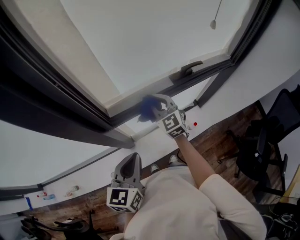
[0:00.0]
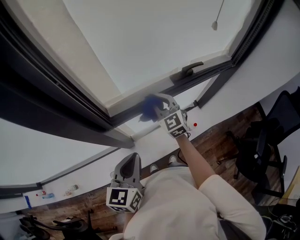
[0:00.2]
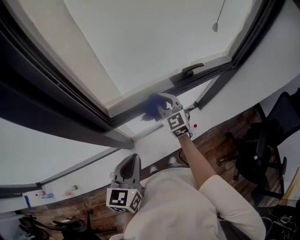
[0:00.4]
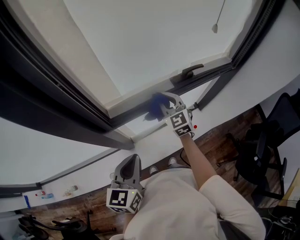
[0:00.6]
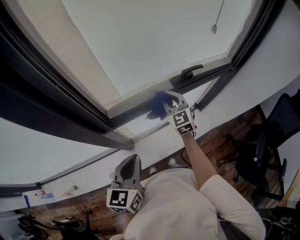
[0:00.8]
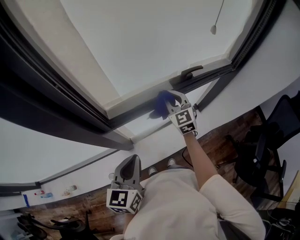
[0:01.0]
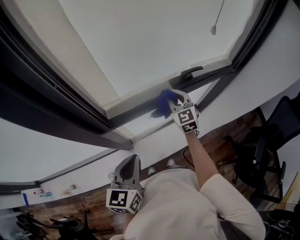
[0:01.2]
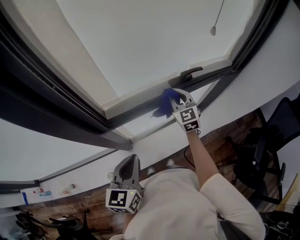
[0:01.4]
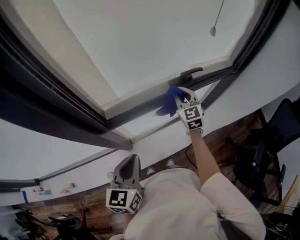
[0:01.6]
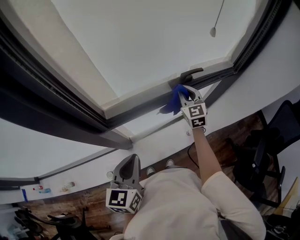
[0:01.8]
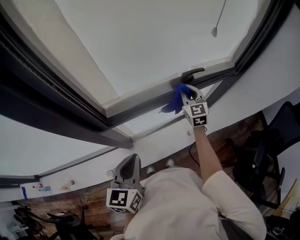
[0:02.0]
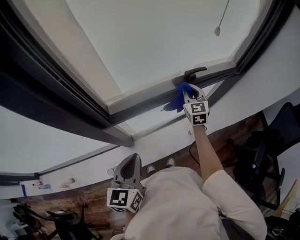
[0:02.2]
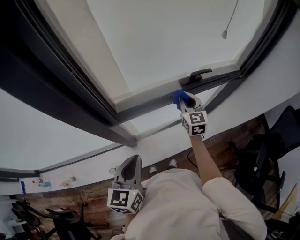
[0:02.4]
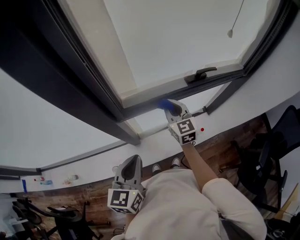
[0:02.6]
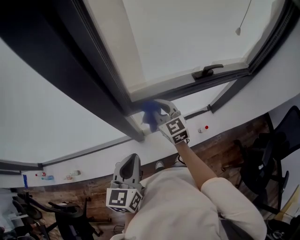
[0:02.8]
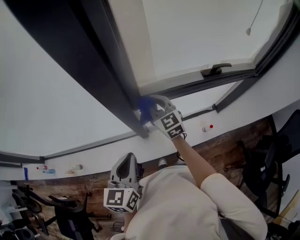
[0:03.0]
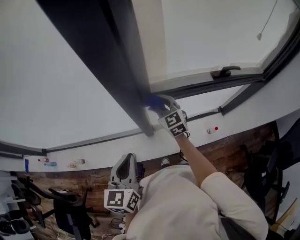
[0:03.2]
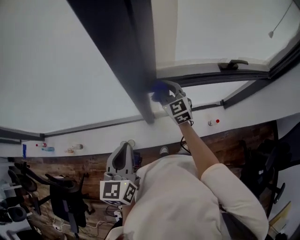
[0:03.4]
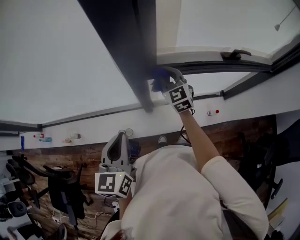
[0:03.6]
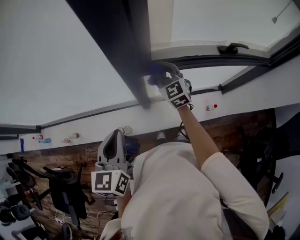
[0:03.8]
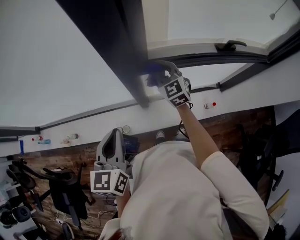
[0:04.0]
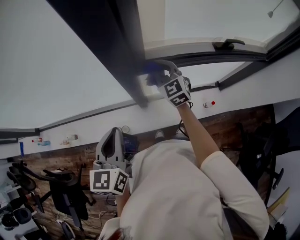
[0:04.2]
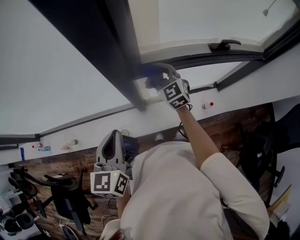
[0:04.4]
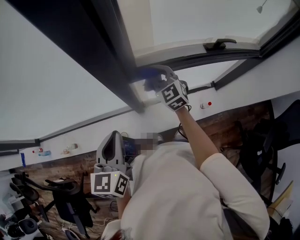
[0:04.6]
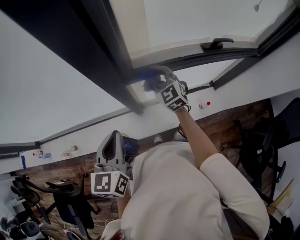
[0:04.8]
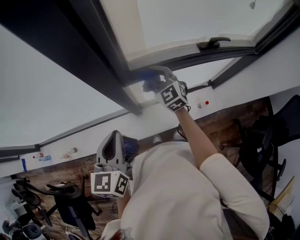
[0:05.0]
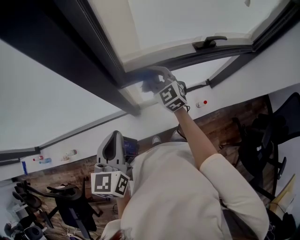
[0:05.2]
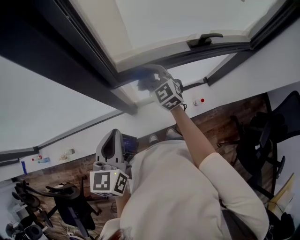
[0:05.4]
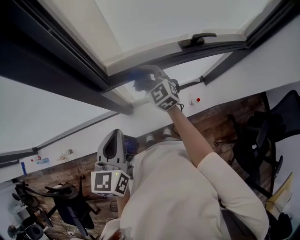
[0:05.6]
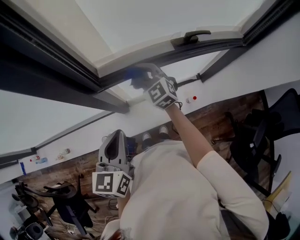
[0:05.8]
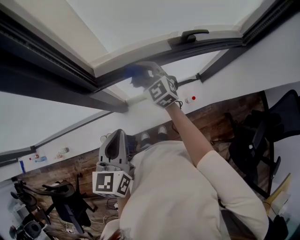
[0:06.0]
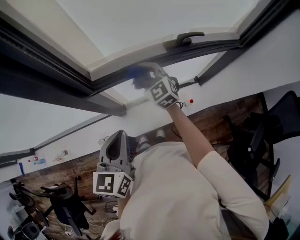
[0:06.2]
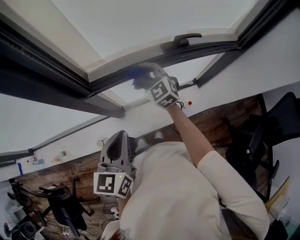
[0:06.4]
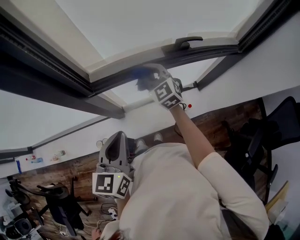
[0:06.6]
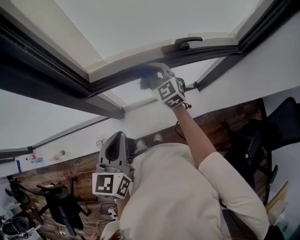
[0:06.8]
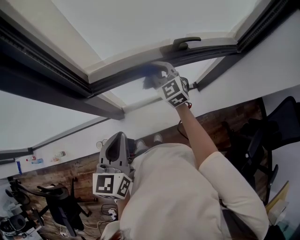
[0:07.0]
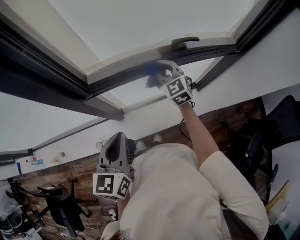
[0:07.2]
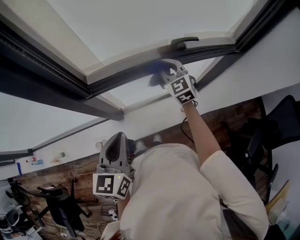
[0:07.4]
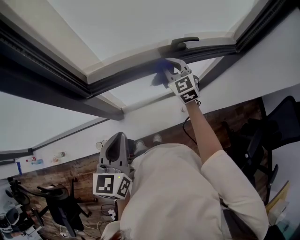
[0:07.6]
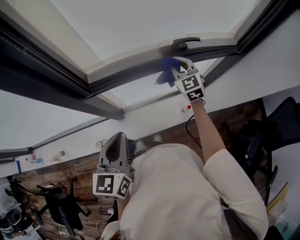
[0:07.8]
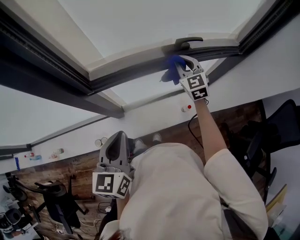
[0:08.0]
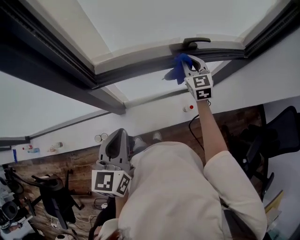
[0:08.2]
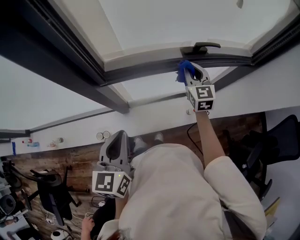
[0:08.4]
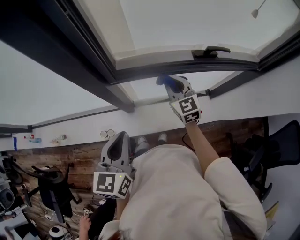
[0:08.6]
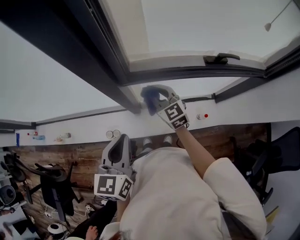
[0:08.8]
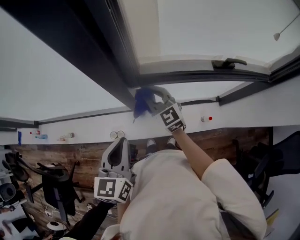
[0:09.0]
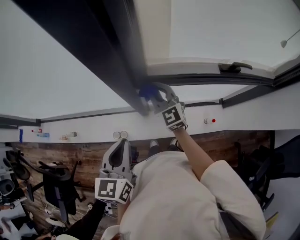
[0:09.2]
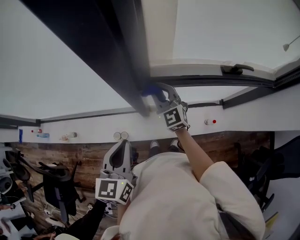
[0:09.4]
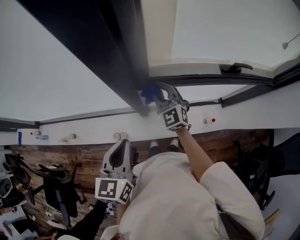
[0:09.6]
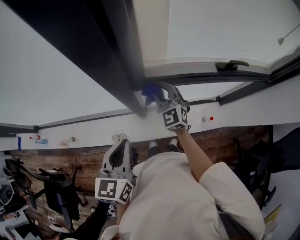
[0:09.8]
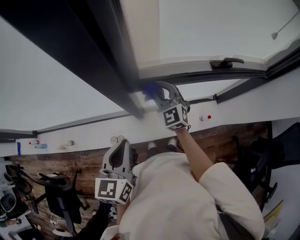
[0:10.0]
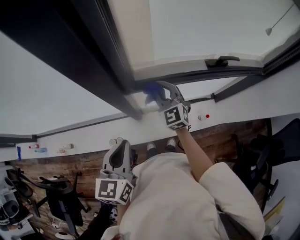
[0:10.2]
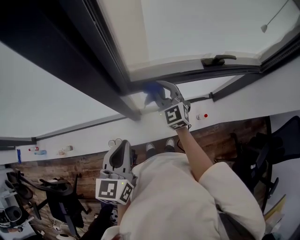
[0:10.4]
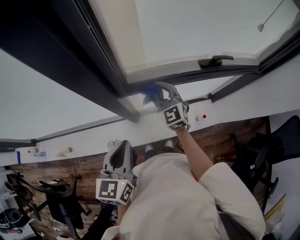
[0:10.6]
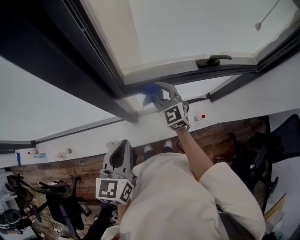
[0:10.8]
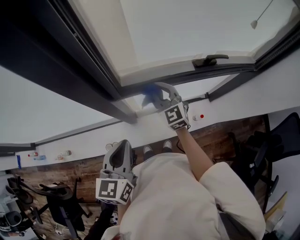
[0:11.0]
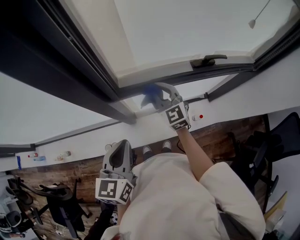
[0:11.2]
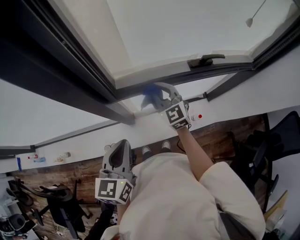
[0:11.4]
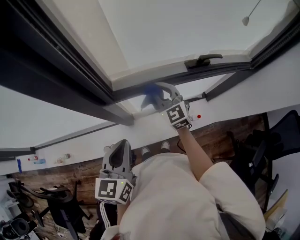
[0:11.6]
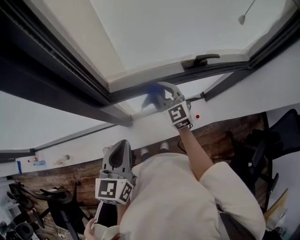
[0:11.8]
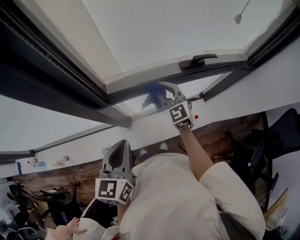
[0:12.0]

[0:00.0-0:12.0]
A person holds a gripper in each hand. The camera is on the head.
0:00.0 to 0:01.6: The right gripper is displaced to the right by some 15 cm.
0:01.6 to 0:03.0: The left gripper goes approximately 15 cm to the left and backward, while the right gripper moves to the left, approximately 30 cm, and swivels some 30 degrees.
0:04.4 to 0:06.0: Both grippers move to the right, approximately 15 cm.
0:06.0 to 0:07.6: The right gripper moves to the right, roughly 15 cm.
0:07.6 to 0:09.0: The right gripper travels to the left by about 30 cm, and rotates about 30 degrees. The left gripper heads to the left, covering some 15 cm.
0:09.0 to 0:10.4: The right gripper goes roughly 10 cm to the right, and turns by approximately 20 degrees.
0:10.4 to 0:12.0: The two grippers go approximately 10 cm to the right.

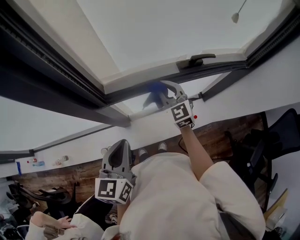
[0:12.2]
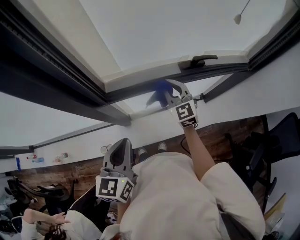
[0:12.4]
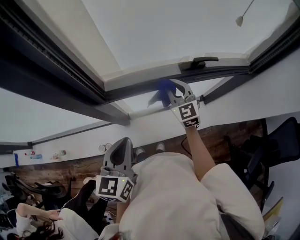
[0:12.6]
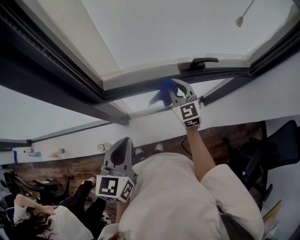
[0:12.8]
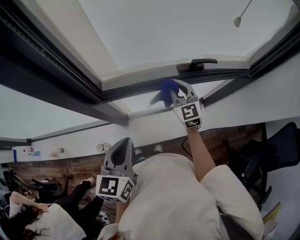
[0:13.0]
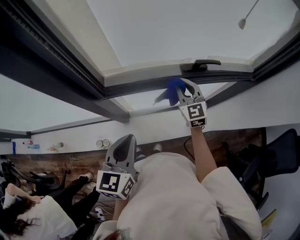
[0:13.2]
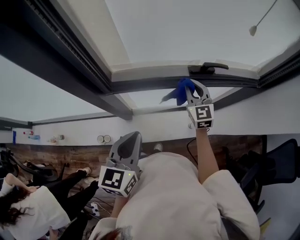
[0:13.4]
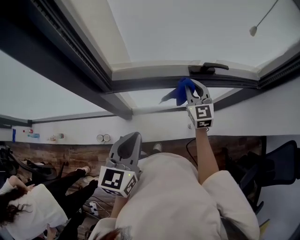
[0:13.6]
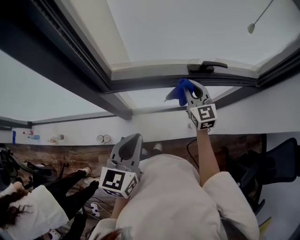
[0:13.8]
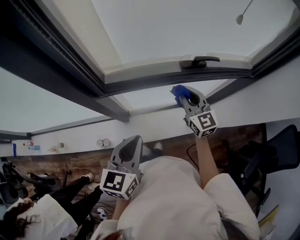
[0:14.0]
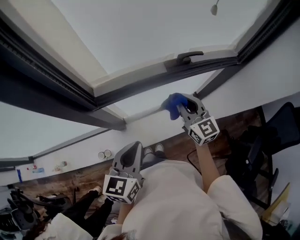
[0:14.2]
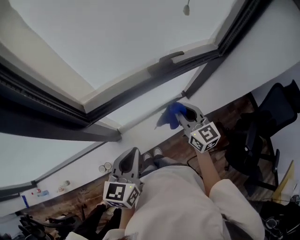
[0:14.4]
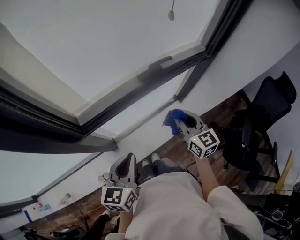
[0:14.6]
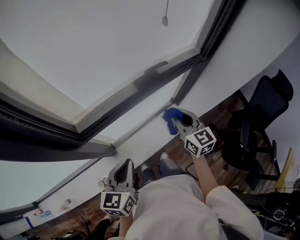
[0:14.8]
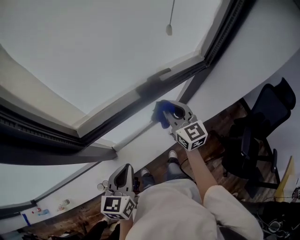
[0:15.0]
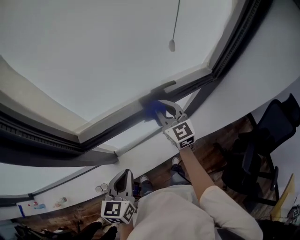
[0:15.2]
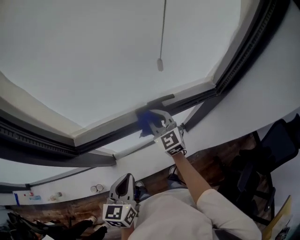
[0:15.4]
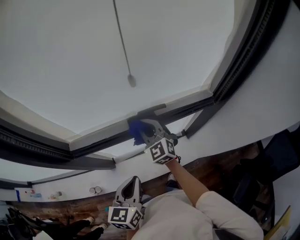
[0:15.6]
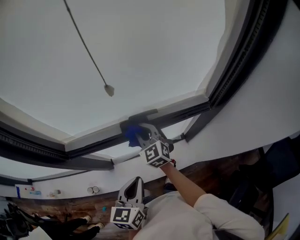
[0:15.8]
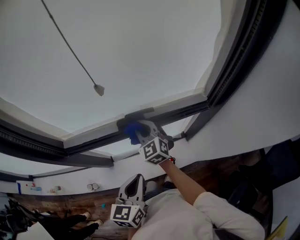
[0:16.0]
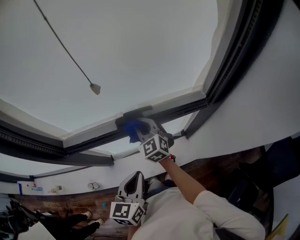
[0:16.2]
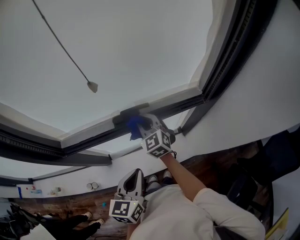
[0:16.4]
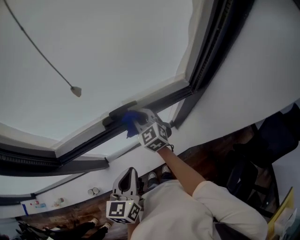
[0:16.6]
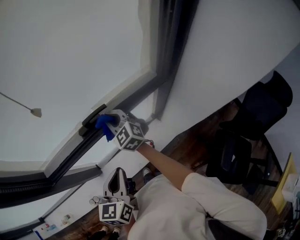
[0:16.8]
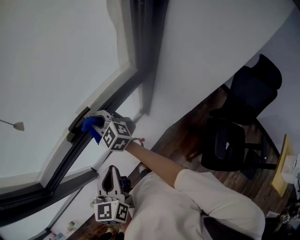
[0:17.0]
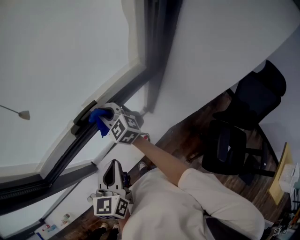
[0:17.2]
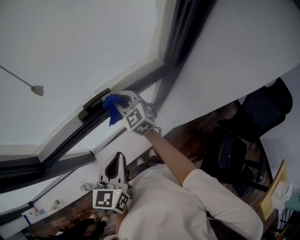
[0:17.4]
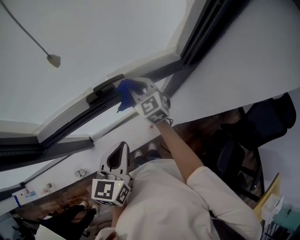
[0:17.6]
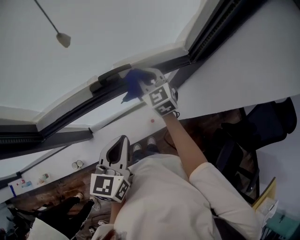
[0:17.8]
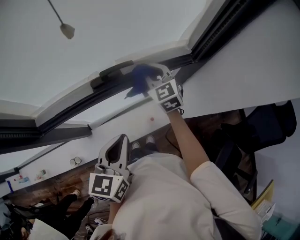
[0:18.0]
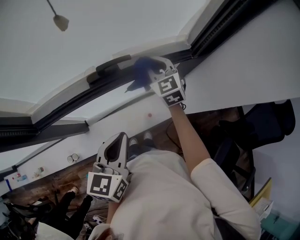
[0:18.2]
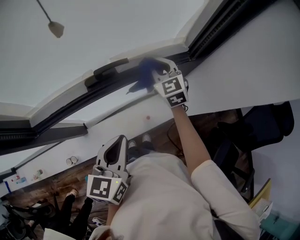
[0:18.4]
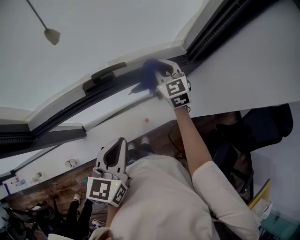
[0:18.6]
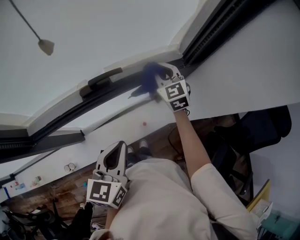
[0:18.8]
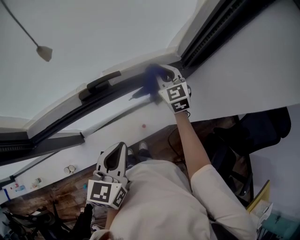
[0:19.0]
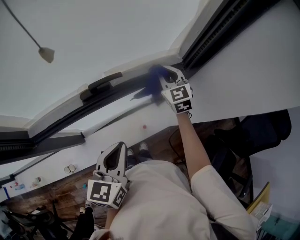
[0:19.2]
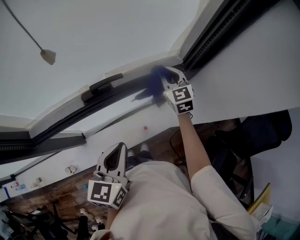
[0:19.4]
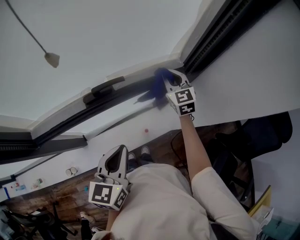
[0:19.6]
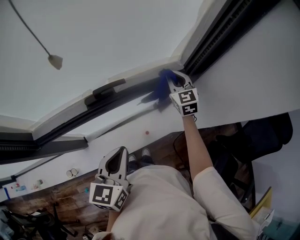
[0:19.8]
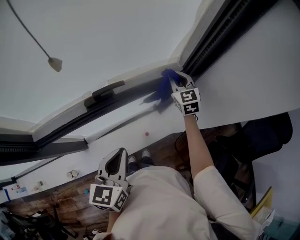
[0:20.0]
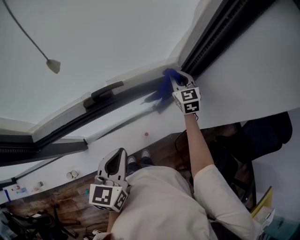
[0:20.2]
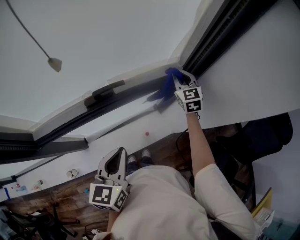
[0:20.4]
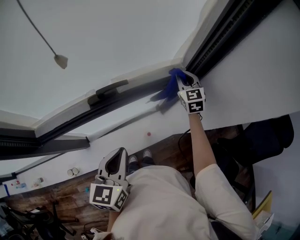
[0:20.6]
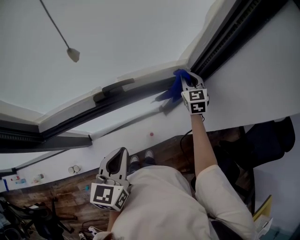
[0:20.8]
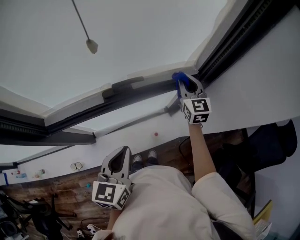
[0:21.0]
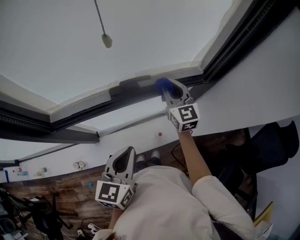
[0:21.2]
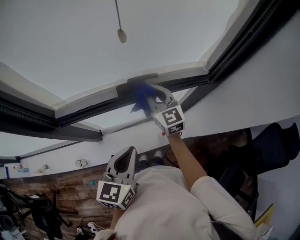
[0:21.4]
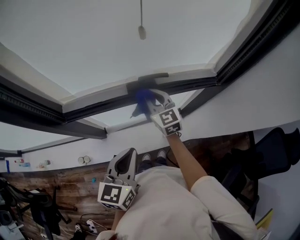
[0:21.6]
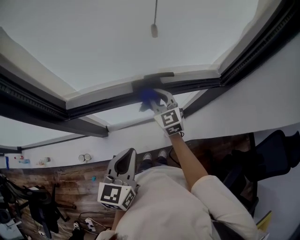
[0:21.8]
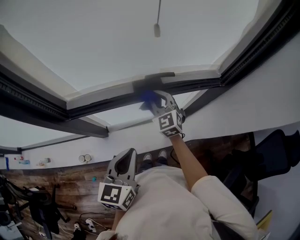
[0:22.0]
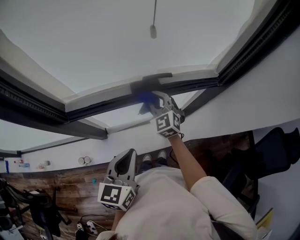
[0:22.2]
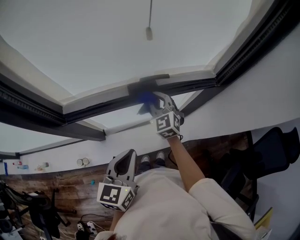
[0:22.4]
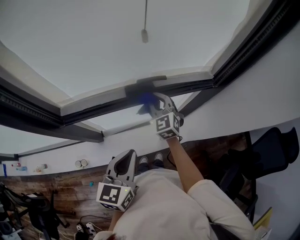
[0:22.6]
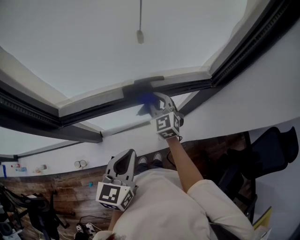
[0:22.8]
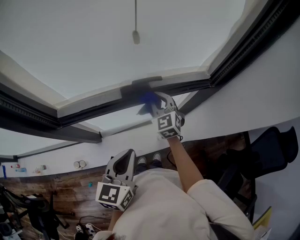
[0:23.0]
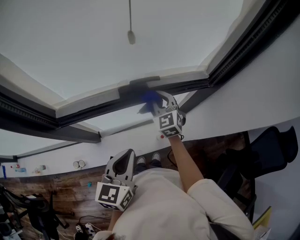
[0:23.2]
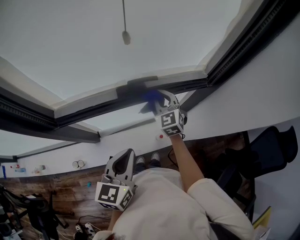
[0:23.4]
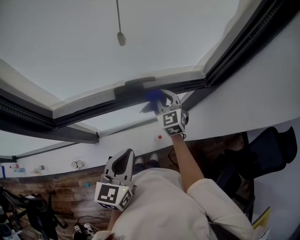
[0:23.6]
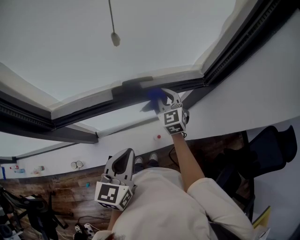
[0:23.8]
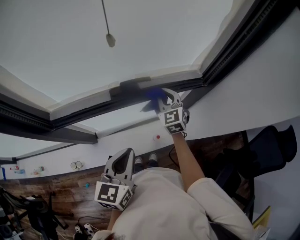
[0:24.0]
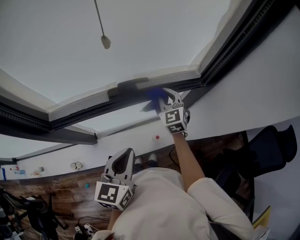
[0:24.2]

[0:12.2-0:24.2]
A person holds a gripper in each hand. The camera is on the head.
0:12.2 to 0:13.8: The grippers both shift to the right by roughly 10 cm.
0:13.8 to 0:15.2: The left gripper changes place by roughly 5 cm. The right gripper shifts approximately 10 cm upward and to the right, and reaches approximately 15 cm backward, then returns.
0:15.2 to 0:16.6: The left gripper moves to the right, approximately 20 cm; the right gripper shifts about 10 cm to the right.
0:16.6 to 0:18.2: The right gripper travels to the right by approximately 10 cm.
0:18.2 to 0:19.8: The right gripper travels to the right by some 10 cm.
0:19.8 to 0:21.2: The right gripper travels to the left, backward and upward by some 15 cm, and changes its angle by some 20 degrees, while the left gripper shifts by some 5 cm.
0:21.2 to 0:22.6: The right gripper heads to the left and downward, covering some 15 cm, and rotates approximately 30 degrees; the left gripper shifts by about 5 cm.
0:22.6 to 0:24.2: The right gripper is displaced to the right by about 10 cm. Meanwhile the left gripper goes about 5 cm to the right.
